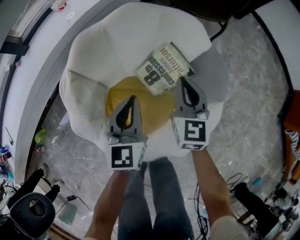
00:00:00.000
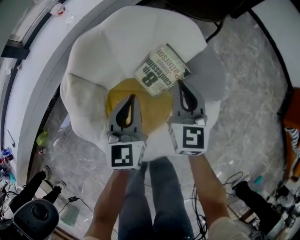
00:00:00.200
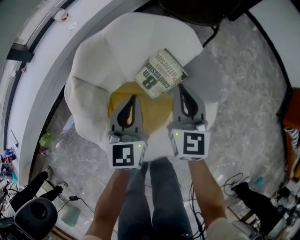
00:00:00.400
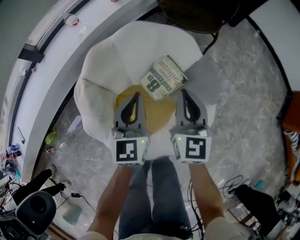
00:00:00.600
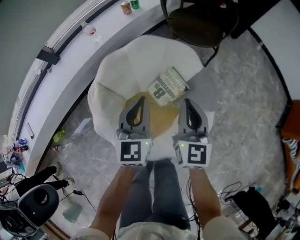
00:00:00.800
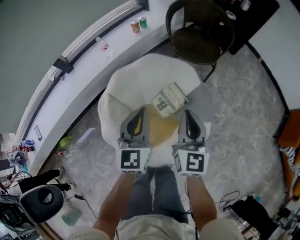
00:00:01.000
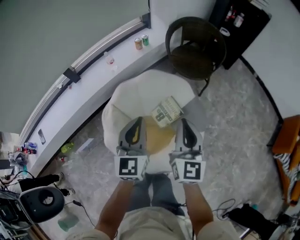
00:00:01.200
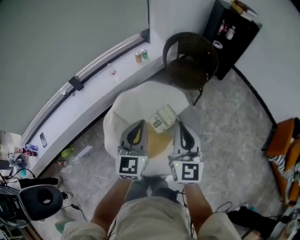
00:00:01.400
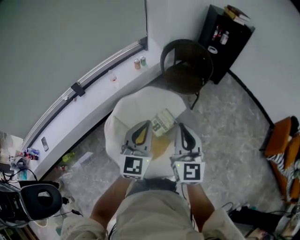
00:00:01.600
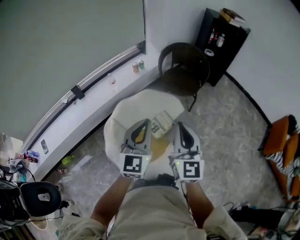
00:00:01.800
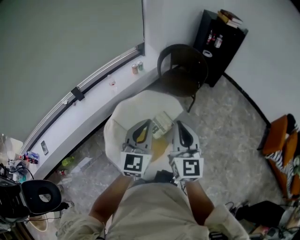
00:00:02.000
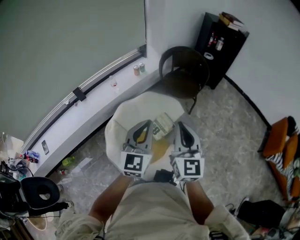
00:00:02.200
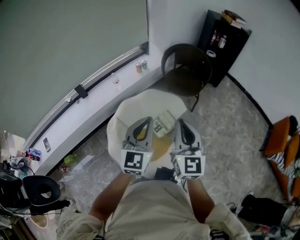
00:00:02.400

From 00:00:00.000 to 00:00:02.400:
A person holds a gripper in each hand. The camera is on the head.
From 00:00:00.000 to 00:00:01.200: The two grippers go some 40 cm upward.
From 00:00:01.200 to 00:00:02.400: The grippers both shift upward and backward by about 15 cm.

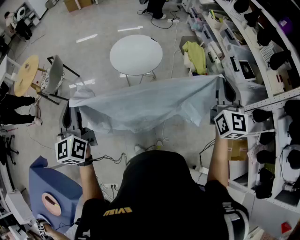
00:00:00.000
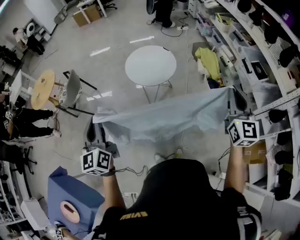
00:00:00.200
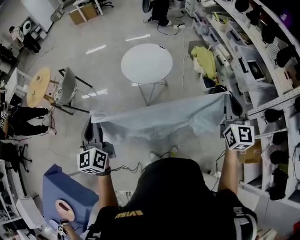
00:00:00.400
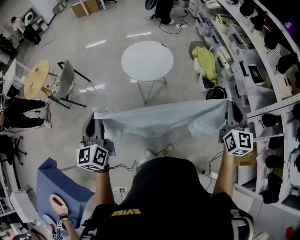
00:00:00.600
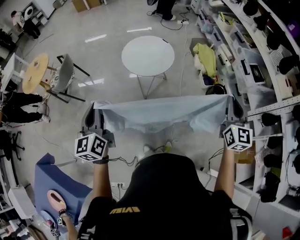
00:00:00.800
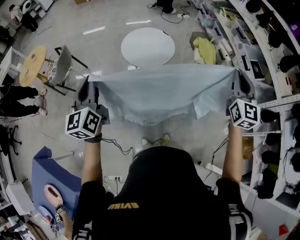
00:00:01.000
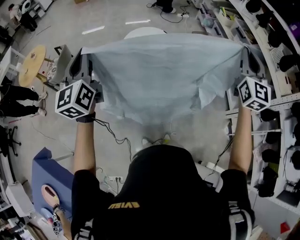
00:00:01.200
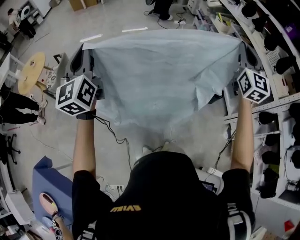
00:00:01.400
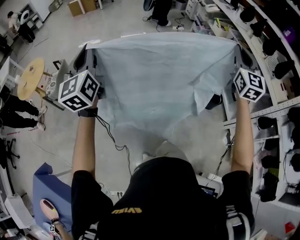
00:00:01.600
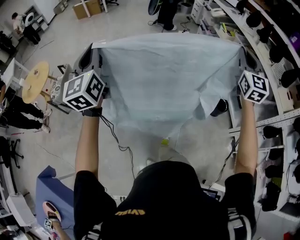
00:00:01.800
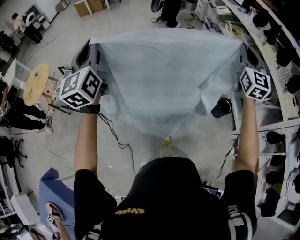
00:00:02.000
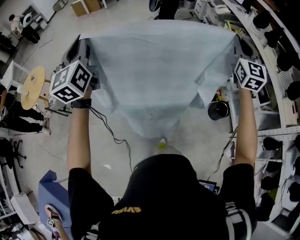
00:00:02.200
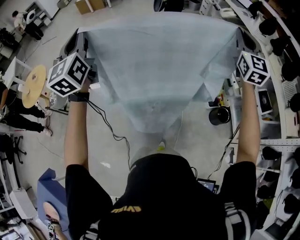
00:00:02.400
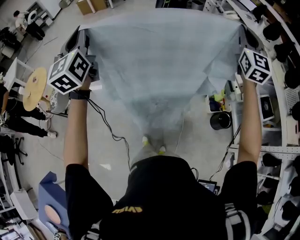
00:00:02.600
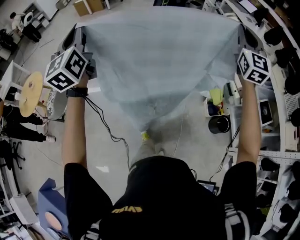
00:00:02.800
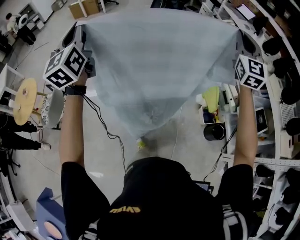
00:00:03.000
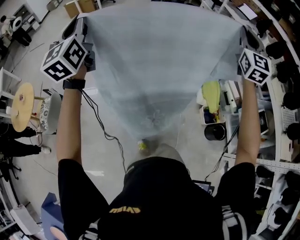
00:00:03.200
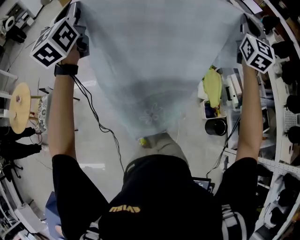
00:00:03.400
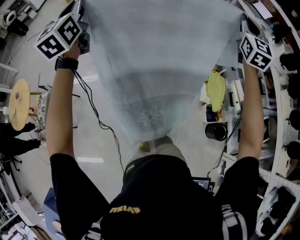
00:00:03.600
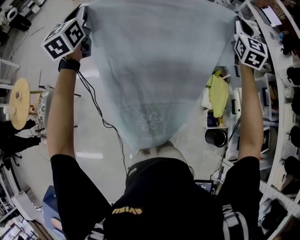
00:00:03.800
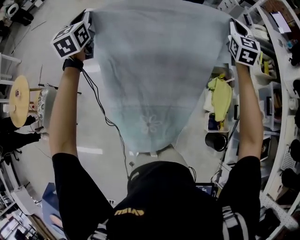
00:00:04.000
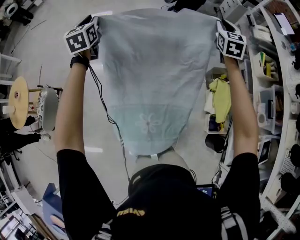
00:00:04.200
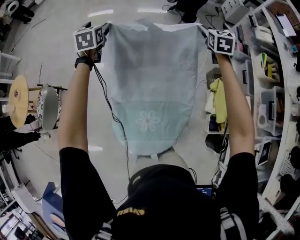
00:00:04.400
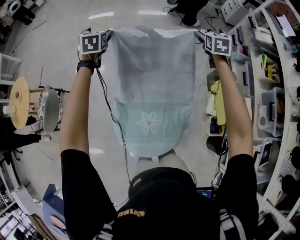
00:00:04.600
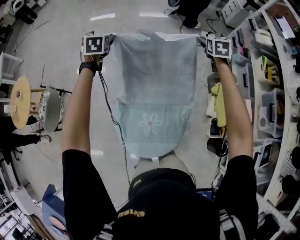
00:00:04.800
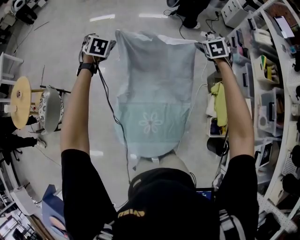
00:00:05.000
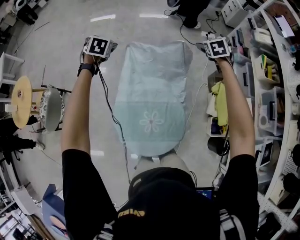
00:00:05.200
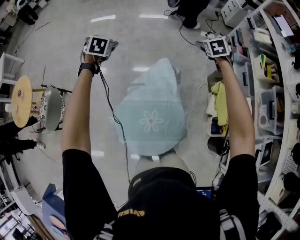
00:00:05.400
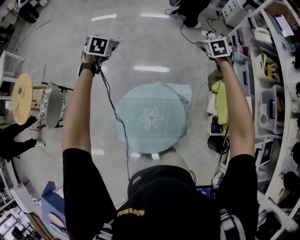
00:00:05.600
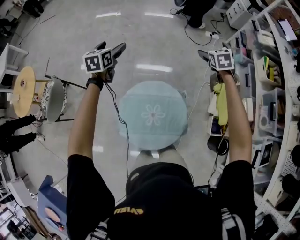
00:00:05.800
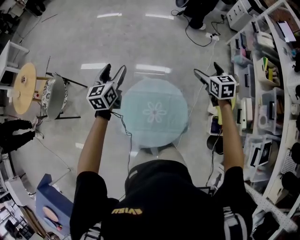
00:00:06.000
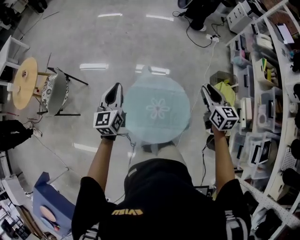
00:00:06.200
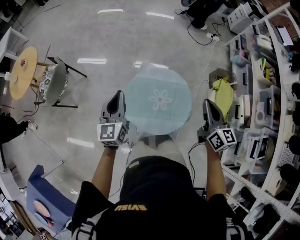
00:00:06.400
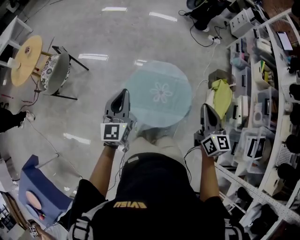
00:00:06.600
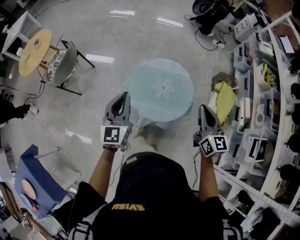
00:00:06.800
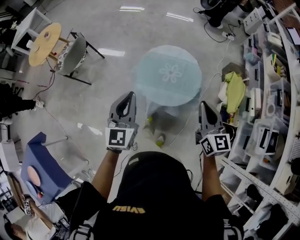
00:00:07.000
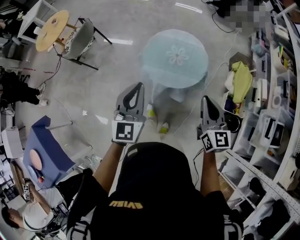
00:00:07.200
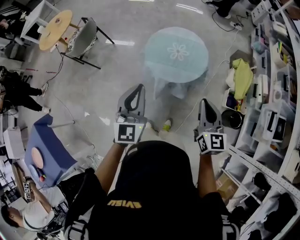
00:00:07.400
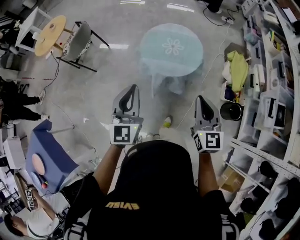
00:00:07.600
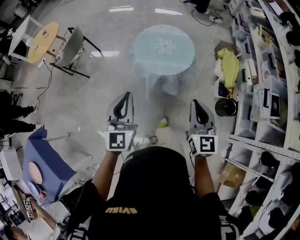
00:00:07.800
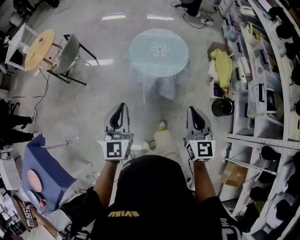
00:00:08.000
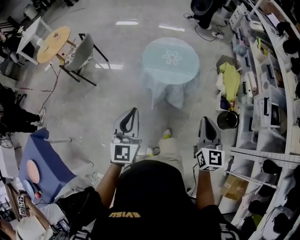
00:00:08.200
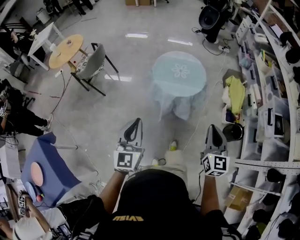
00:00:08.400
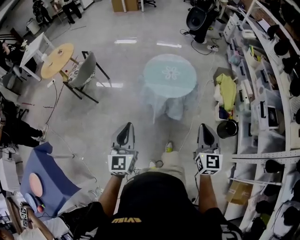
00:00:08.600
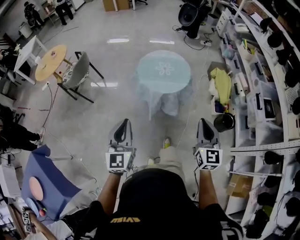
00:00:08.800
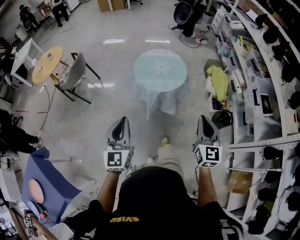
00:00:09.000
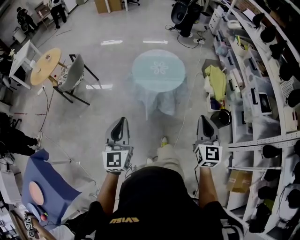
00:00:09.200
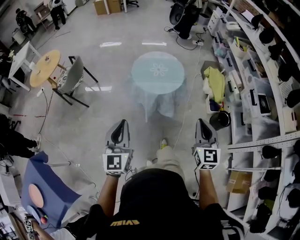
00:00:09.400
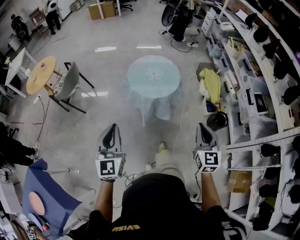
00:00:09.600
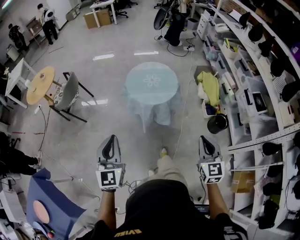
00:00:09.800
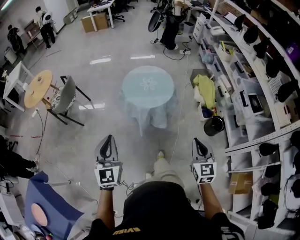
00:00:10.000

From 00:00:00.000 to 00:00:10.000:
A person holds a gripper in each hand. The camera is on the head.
From 00:00:00.000 to 00:00:01.400: The right gripper goes roughly 15 cm upward and forward; the left gripper travels forward and upward by approximately 15 cm.
From 00:00:01.400 to 00:00:02.800: Both grippers are carried forward, roughly 50 cm.
From 00:00:02.800 to 00:00:04.200: The two grippers travel together, forward, approximately 60 cm. Both grippers travel together downward, roughly 25 cm. The right gripper rotates about 30 degrees, while the left gripper rotates roughly 30 degrees.
From 00:00:04.200 to 00:00:05.800: The right gripper goes approximately 15 cm downward and backward, turns by some 30 degrees, and opens, while the left gripper heads backward and downward, covering about 20 cm, and opens up.
From 00:00:05.800 to 00:00:07.200: The two grippers travel together, backward, approximately 70 cm. The left gripper rotates roughly 30 degrees, and closes its fingers. The right gripper tips its fingers upward by some 30 degrees, and closes.
From 00:00:07.200 to 00:00:08.600: The two grippers go about 30 cm backward.
From 00:00:08.600 to 00:00:10.000: The right gripper is displaced backward by about 5 cm.

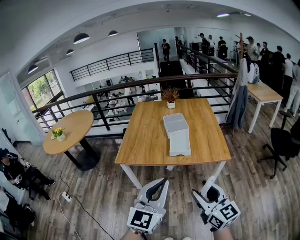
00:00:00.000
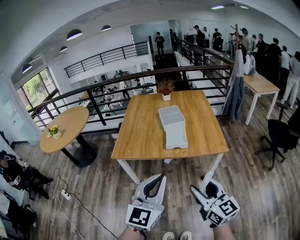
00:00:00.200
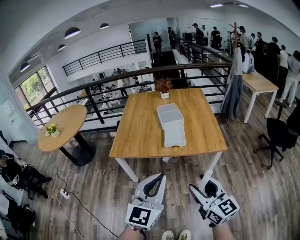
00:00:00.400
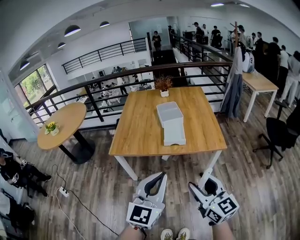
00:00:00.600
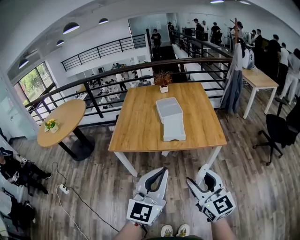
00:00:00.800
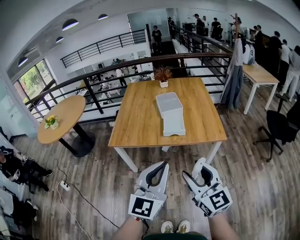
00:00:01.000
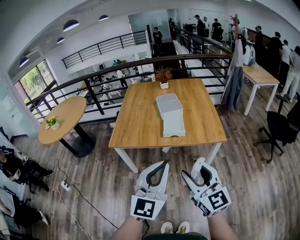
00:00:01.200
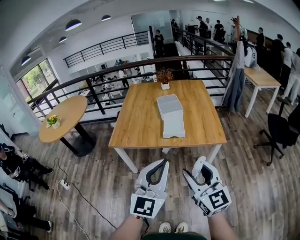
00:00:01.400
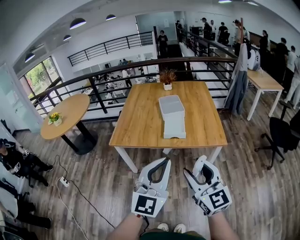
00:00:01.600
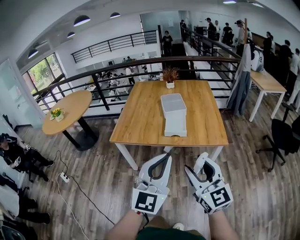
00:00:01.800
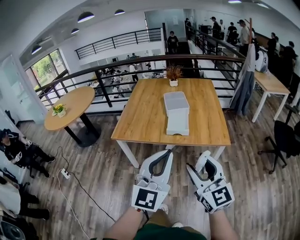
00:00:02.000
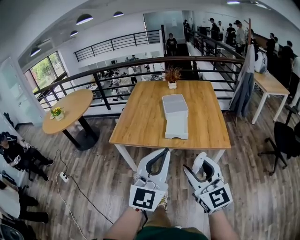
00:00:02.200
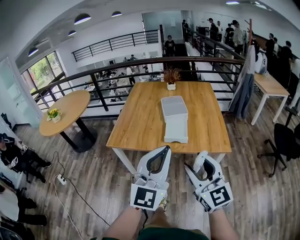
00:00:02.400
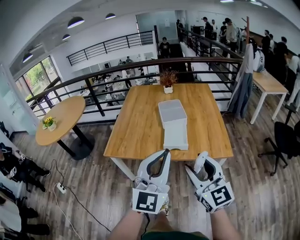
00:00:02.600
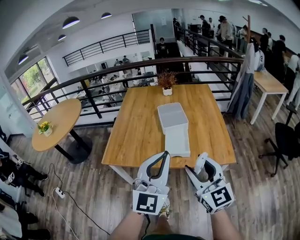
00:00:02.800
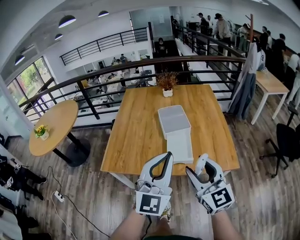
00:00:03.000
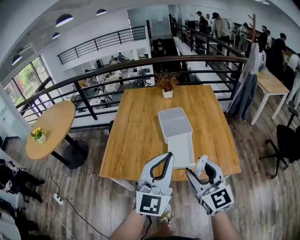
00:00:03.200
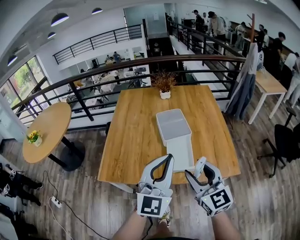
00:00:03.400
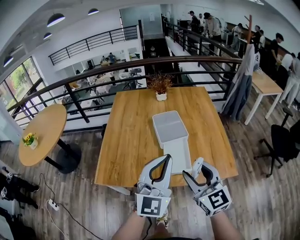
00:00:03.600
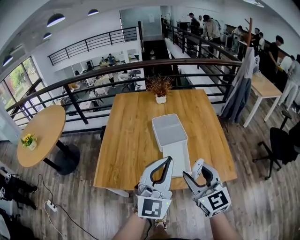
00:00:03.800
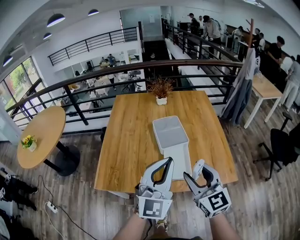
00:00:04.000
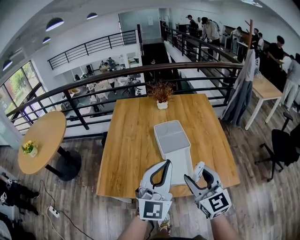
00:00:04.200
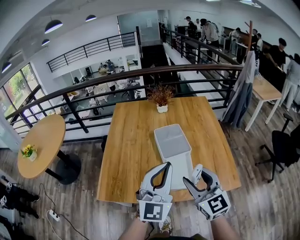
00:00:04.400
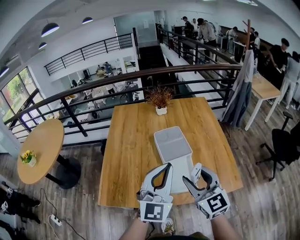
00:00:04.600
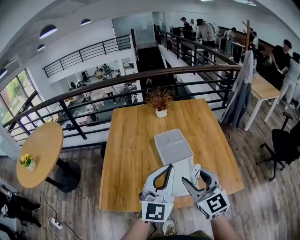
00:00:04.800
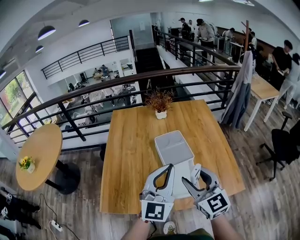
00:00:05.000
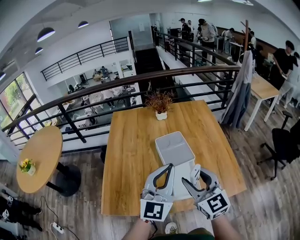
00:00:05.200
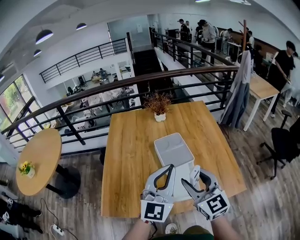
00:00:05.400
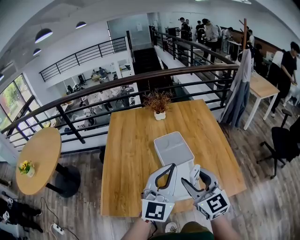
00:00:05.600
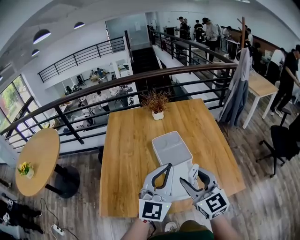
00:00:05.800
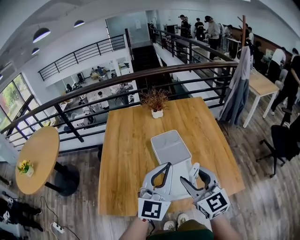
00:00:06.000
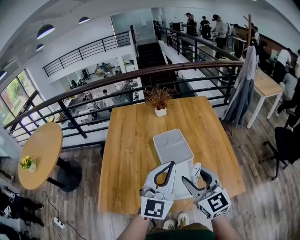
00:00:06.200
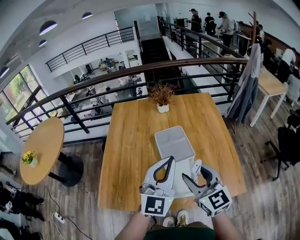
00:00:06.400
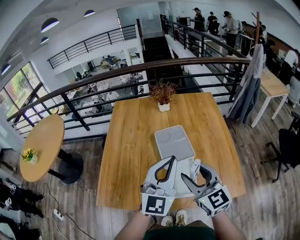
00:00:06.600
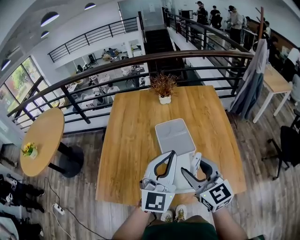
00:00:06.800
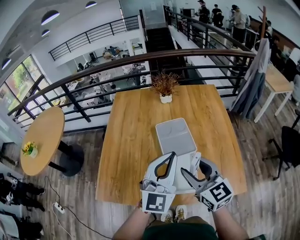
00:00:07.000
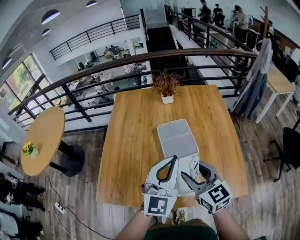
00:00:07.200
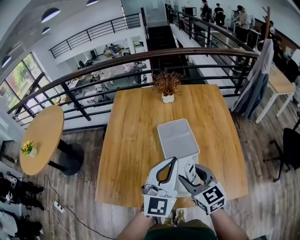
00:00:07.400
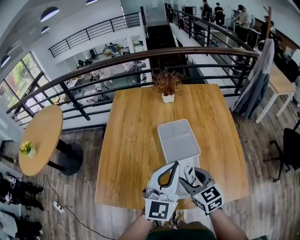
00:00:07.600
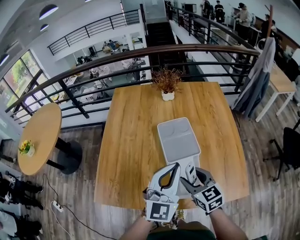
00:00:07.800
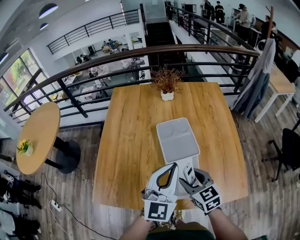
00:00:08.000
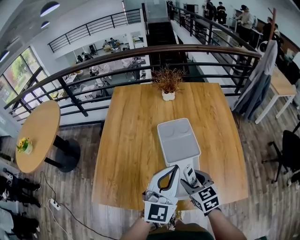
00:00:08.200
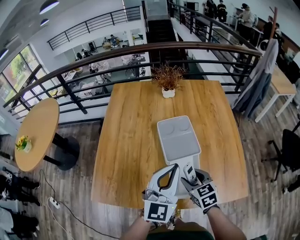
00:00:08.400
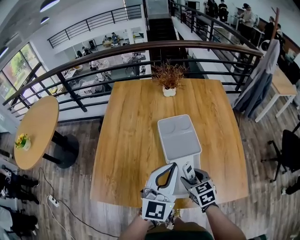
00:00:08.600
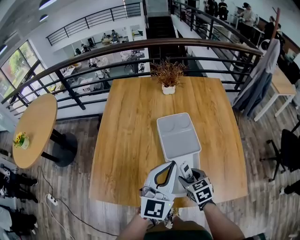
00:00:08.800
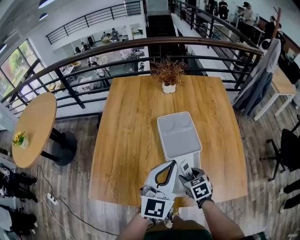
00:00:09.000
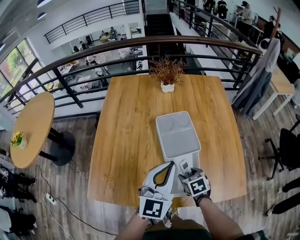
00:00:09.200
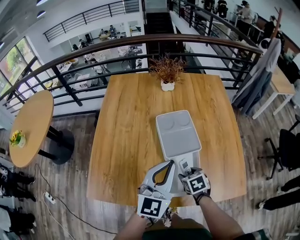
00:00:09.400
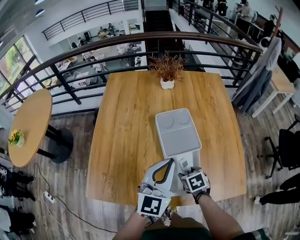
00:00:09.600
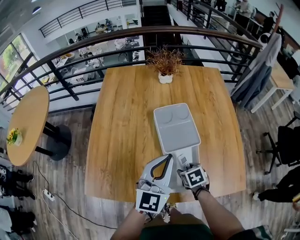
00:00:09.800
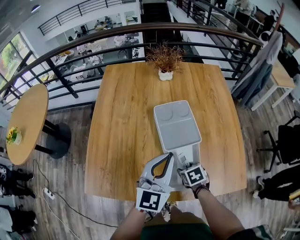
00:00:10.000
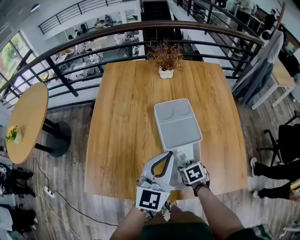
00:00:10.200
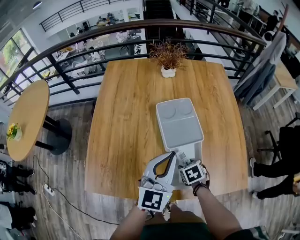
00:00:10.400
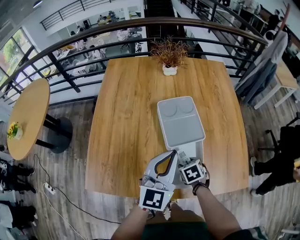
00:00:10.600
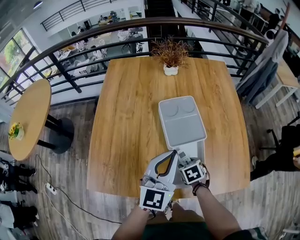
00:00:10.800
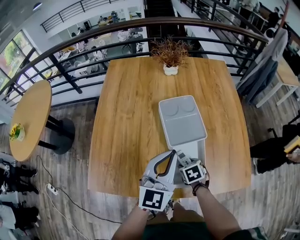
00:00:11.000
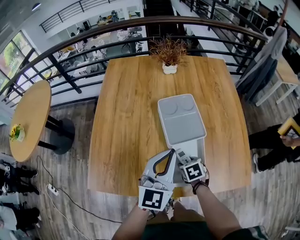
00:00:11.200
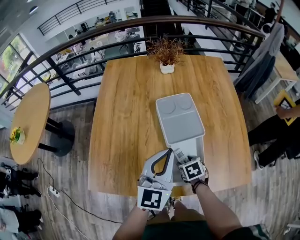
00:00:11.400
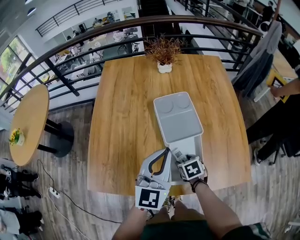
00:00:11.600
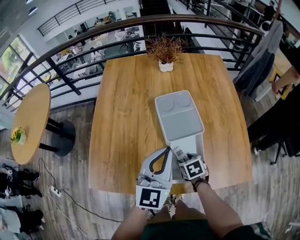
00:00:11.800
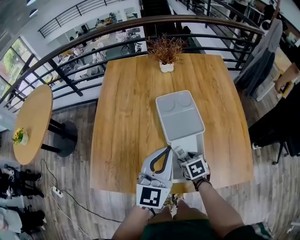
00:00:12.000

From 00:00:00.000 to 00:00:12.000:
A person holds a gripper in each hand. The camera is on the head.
From 00:00:00.000 to 00:00:01.600: The left gripper moves to the right, approximately 5 cm.
From 00:00:01.600 to 00:00:03.000: The two grippers go some 25 cm forward.
From 00:00:03.000 to 00:00:04.400: Both grippers travel together forward, approximately 15 cm.
From 00:00:04.400 to 00:00:06.000: The grippers both shift forward by about 5 cm.
From 00:00:06.000 to 00:00:07.600: The left gripper travels downward by approximately 5 cm, while the right gripper goes roughly 15 cm downward and forward, and turns by about 20 degrees.
From 00:00:07.600 to 00:00:09.000: The right gripper shifts some 15 cm downward, and rotates roughly 30 degrees.
From 00:00:09.000 to 00:00:10.400: The right gripper heads downward, covering about 5 cm.
From 00:00:10.400 to 00:00:12.000: The grippers stay close to where they were, moving slightly.
